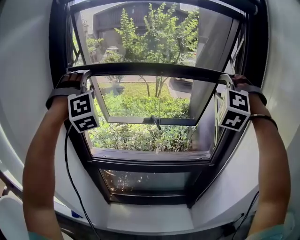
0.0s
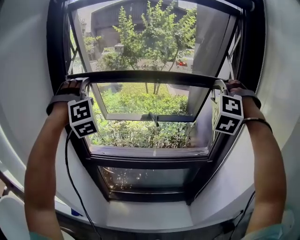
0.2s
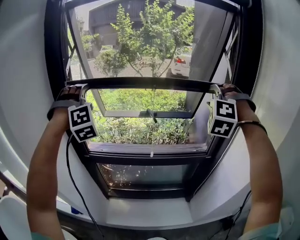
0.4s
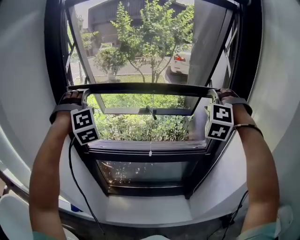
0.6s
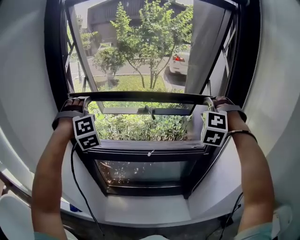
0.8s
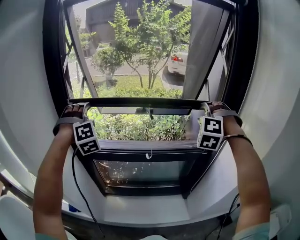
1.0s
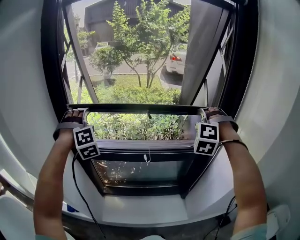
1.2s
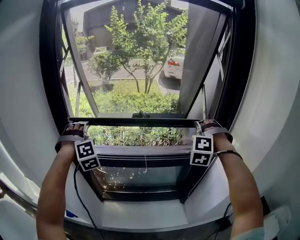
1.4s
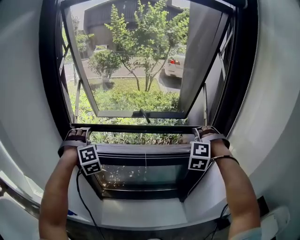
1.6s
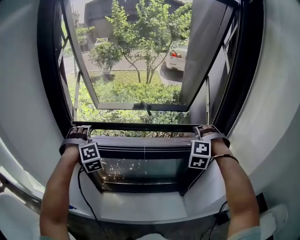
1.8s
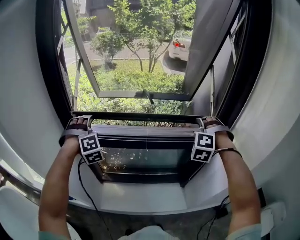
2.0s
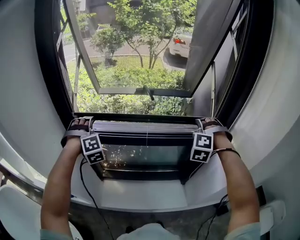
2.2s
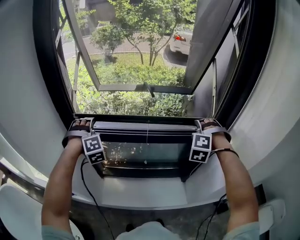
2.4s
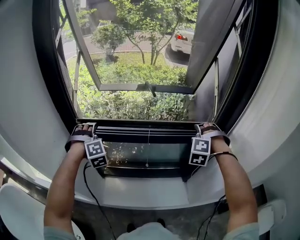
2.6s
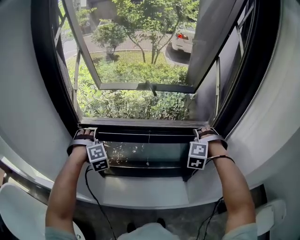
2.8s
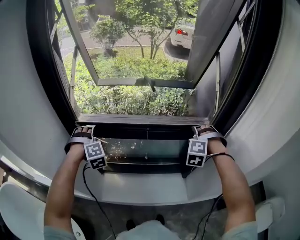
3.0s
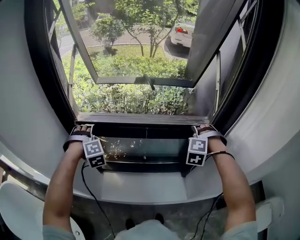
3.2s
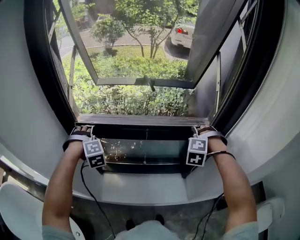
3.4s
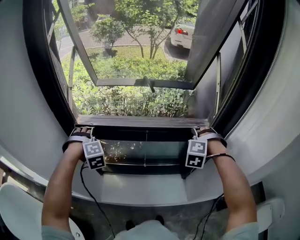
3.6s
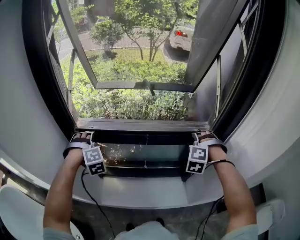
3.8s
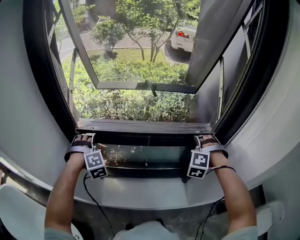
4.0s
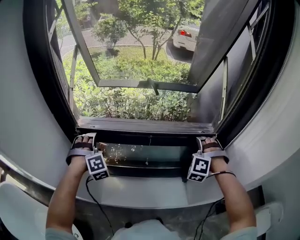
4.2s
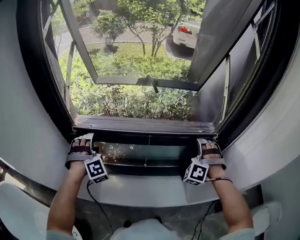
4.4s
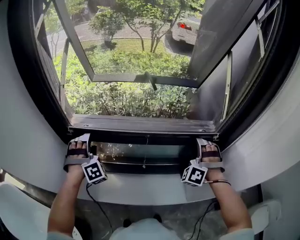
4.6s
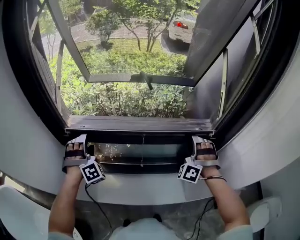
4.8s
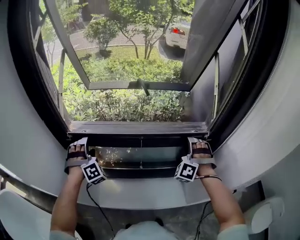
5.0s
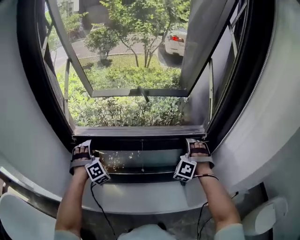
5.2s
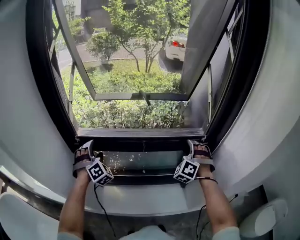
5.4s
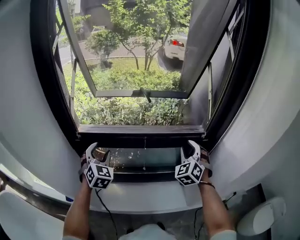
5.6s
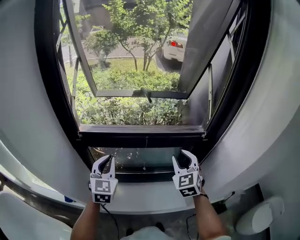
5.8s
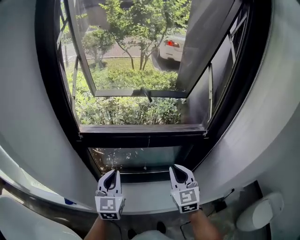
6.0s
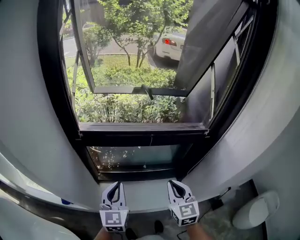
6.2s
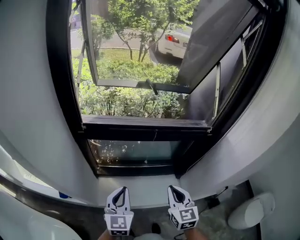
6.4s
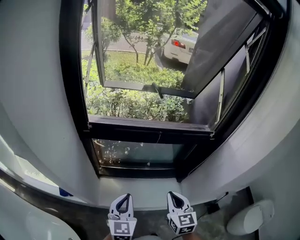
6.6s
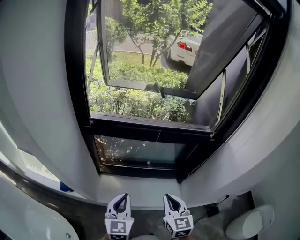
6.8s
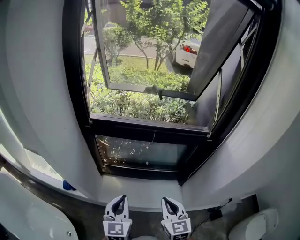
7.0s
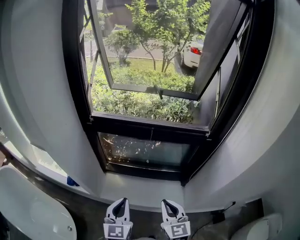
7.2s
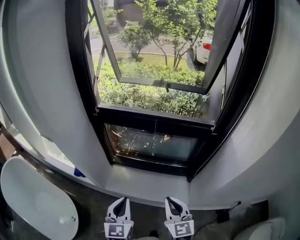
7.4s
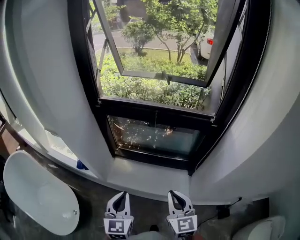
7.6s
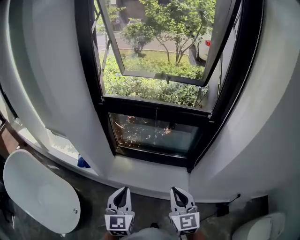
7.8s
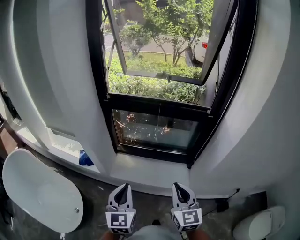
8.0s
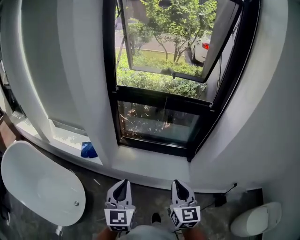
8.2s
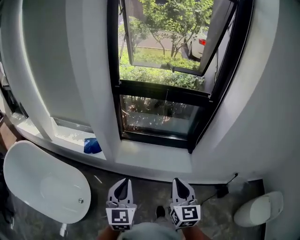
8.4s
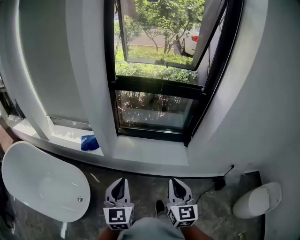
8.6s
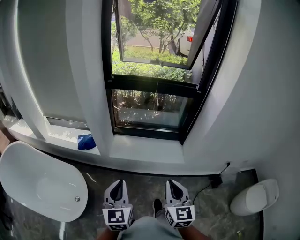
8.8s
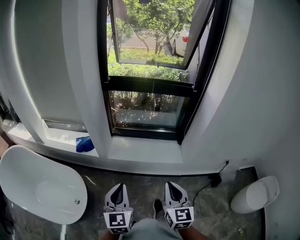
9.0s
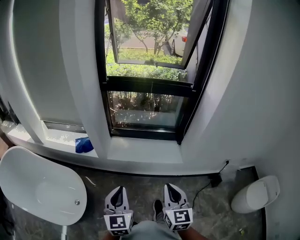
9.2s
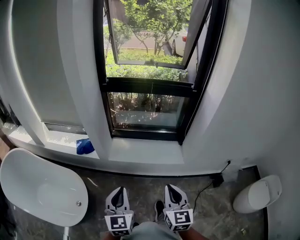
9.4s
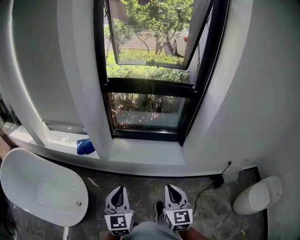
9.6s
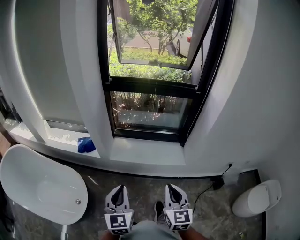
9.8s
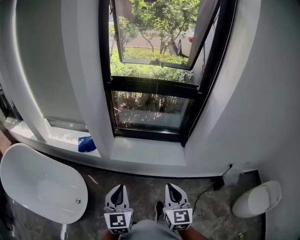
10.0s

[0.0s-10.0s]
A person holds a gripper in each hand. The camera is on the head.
0.0s to 1.4s: Both grippers move downward, roughly 25 cm. The left gripper rotates approximately 20 degrees.
1.4s to 2.8s: Both grippers travel together downward, roughly 20 cm.
2.8s to 4.2s: There are only small adjustments of the grippers.
4.2s to 5.8s: The left gripper is displaced backward, to the right and upward by about 15 cm, twists some 70 degrees counterclockwise, seen from behind, and closes up; the right gripper shifts approximately 15 cm backward, to the left and upward, and twists about 60 degrees clockwise, seen from behind.
5.8s to 7.2s: The left gripper is displaced backward by about 25 cm, while the right gripper moves backward and downward, some 25 cm, changes its angle by approximately 30 degrees, and closes up.
7.2s to 8.6s: The left gripper shifts approximately 30 cm backward and to the left. The right gripper goes approximately 30 cm backward.

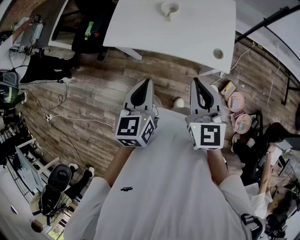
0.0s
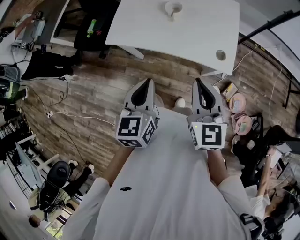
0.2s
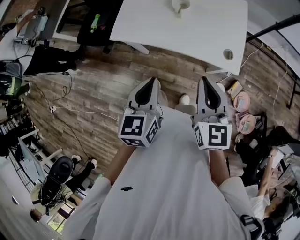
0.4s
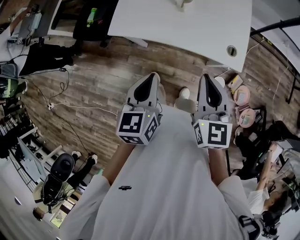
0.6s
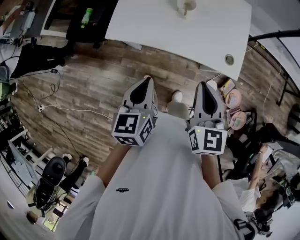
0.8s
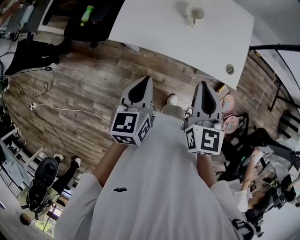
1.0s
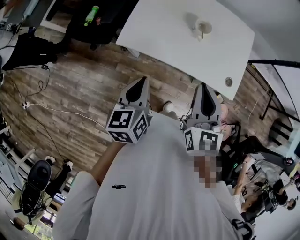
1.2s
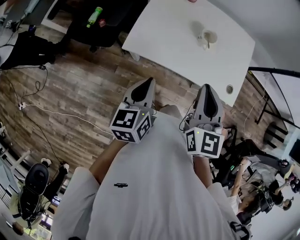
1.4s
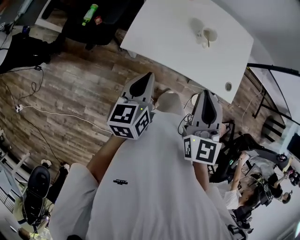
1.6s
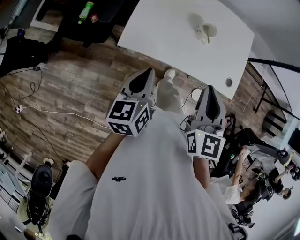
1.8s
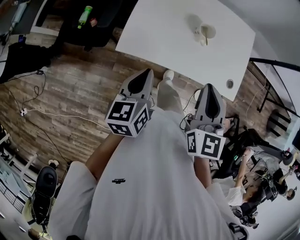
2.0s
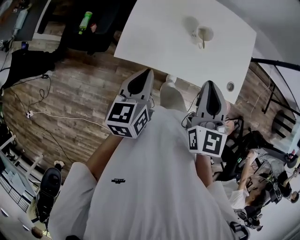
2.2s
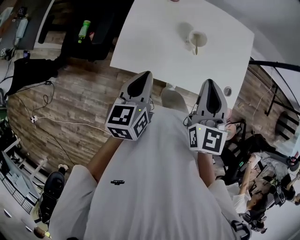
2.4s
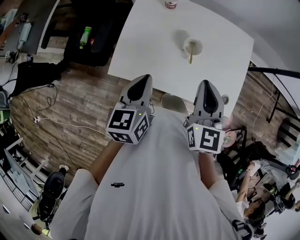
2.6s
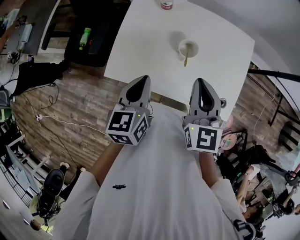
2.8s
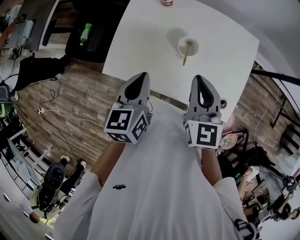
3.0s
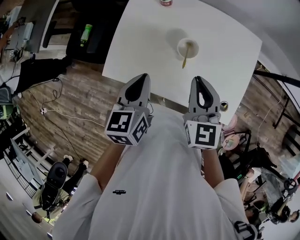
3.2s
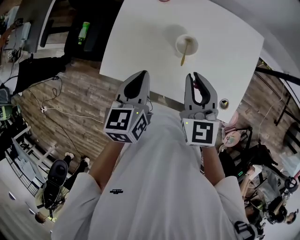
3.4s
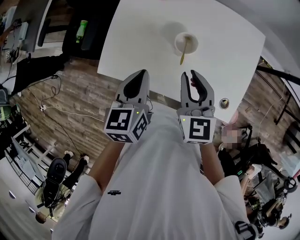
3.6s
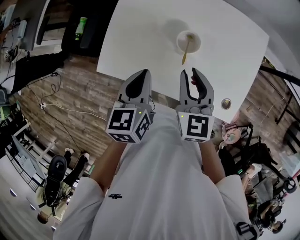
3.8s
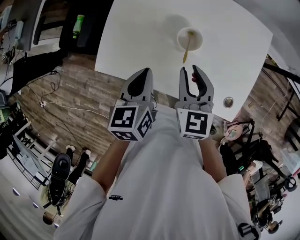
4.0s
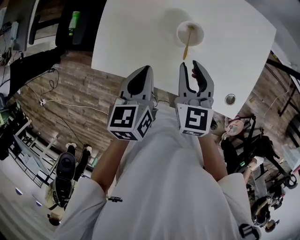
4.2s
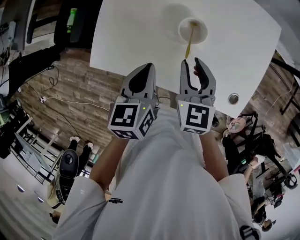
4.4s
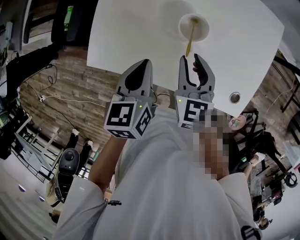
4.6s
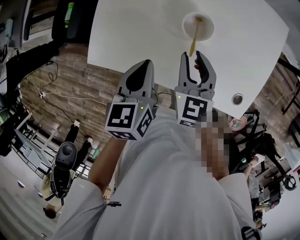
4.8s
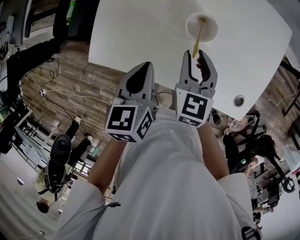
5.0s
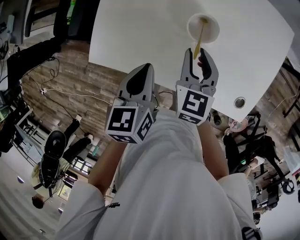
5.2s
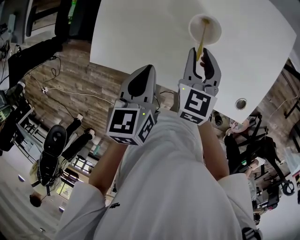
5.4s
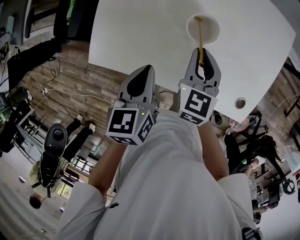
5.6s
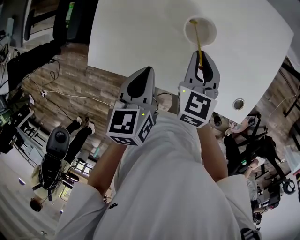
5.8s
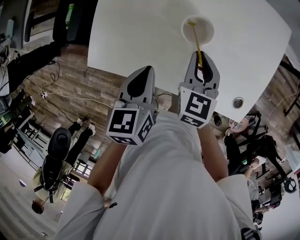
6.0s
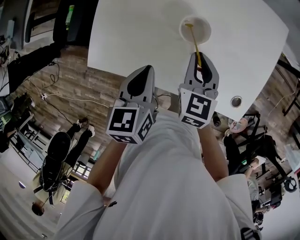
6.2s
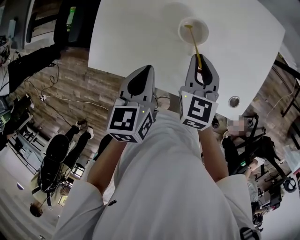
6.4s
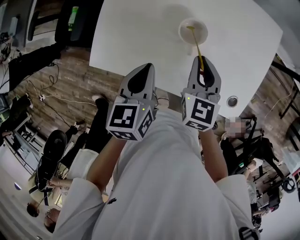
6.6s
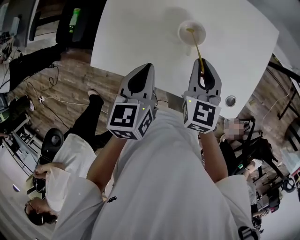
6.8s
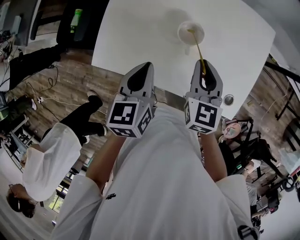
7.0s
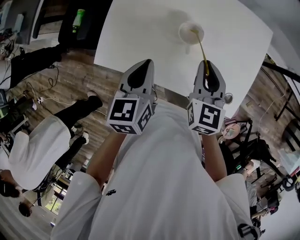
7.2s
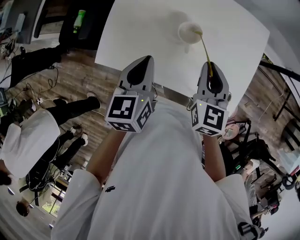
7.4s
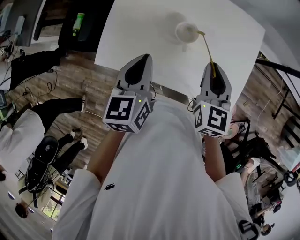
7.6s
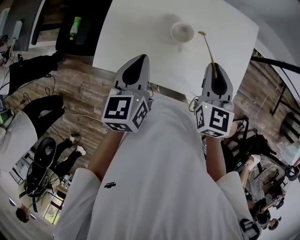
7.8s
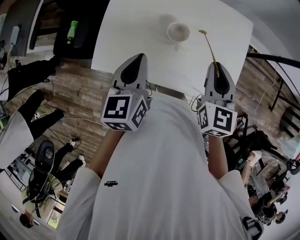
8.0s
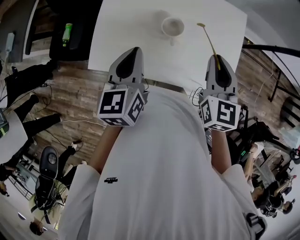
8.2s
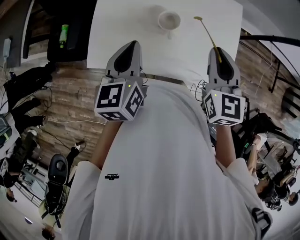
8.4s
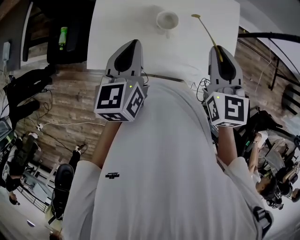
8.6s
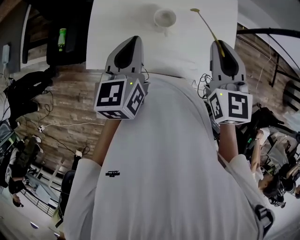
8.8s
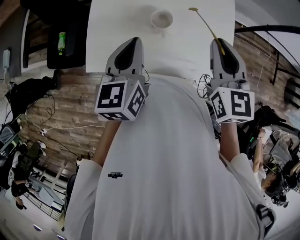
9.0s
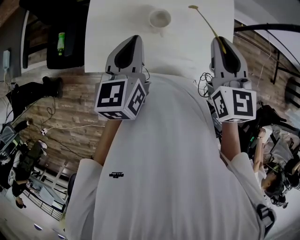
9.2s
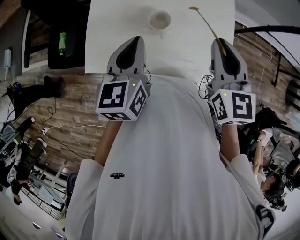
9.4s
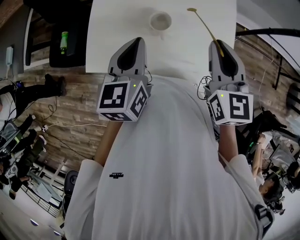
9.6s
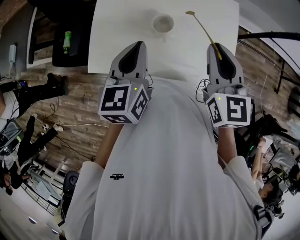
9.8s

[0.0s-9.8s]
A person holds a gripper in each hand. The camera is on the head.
0.0s to 1.4s: The grippers both shift to the left and forward by about 20 cm.
1.4s to 2.8s: The grippers both shift forward and to the right by some 20 cm.
2.8s to 4.2s: Both grippers move downward, some 15 cm. The right gripper opens its fingers.
4.2s to 5.6s: The right gripper is displaced downward by approximately 10 cm, while the left gripper shifts about 5 cm downward.
5.6s to 7.0s: The grippers both shift upward by roughly 10 cm.
7.0s to 8.4s: The right gripper heads upward and to the right, covering about 15 cm. The left gripper moves upward, some 10 cm.
8.4s to 9.8s: The left gripper goes approximately 10 cm to the right. The right gripper moves some 5 cm.

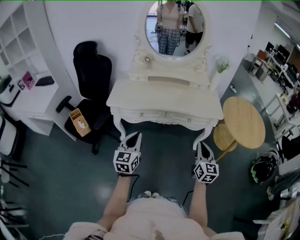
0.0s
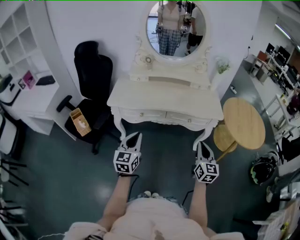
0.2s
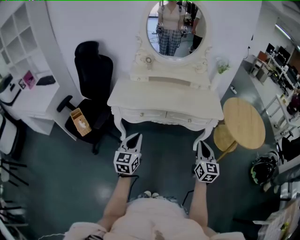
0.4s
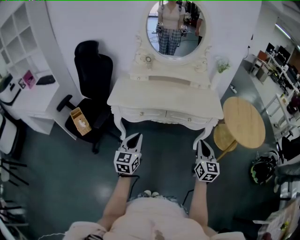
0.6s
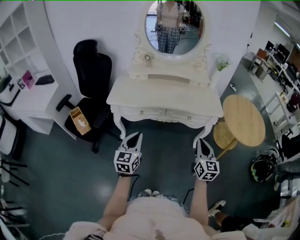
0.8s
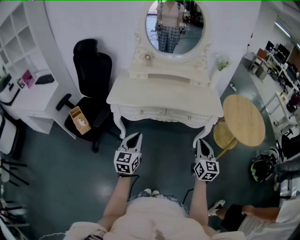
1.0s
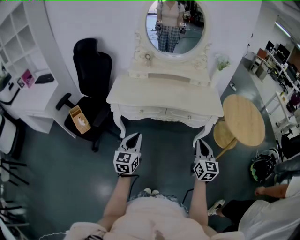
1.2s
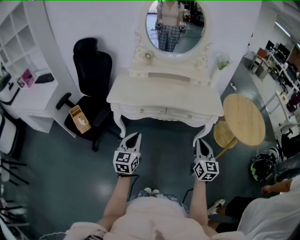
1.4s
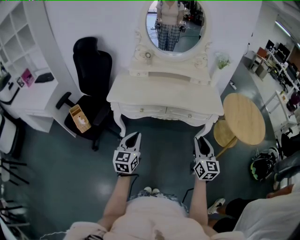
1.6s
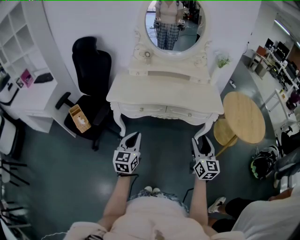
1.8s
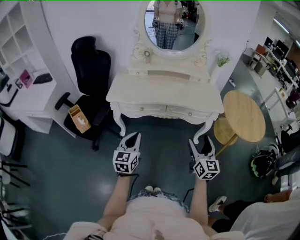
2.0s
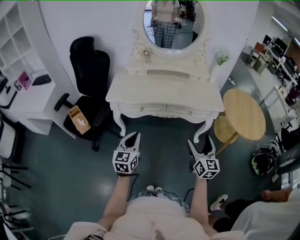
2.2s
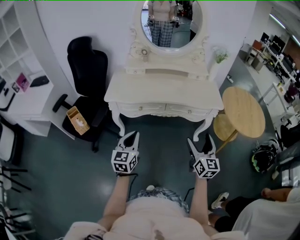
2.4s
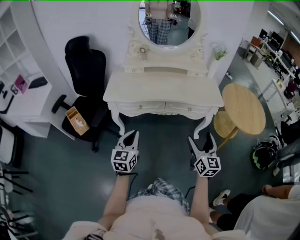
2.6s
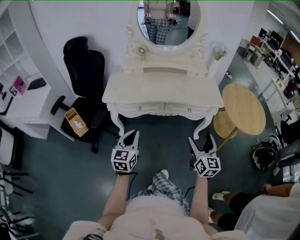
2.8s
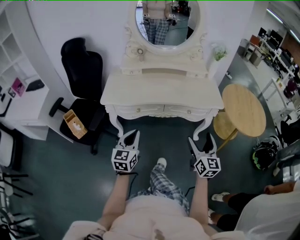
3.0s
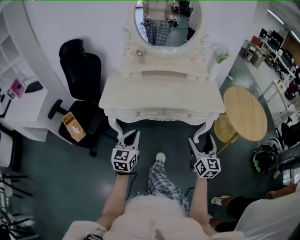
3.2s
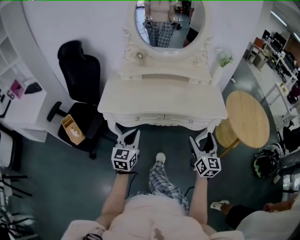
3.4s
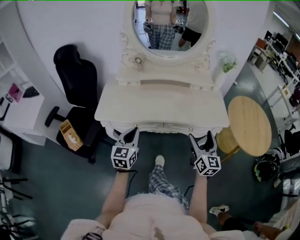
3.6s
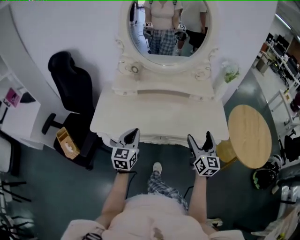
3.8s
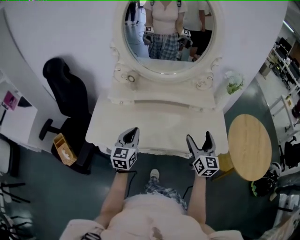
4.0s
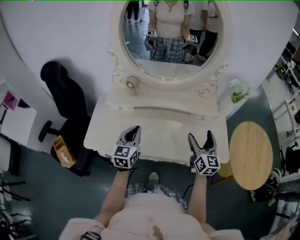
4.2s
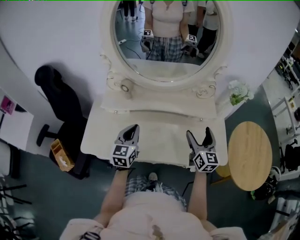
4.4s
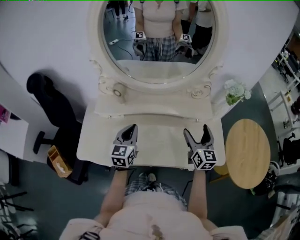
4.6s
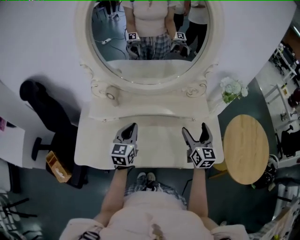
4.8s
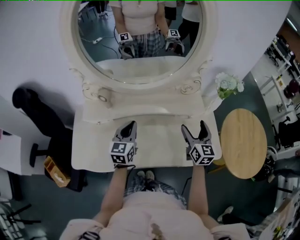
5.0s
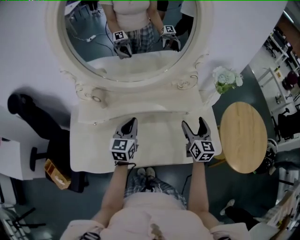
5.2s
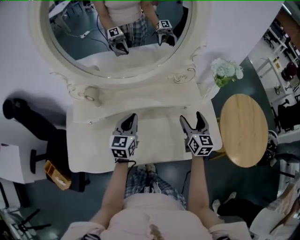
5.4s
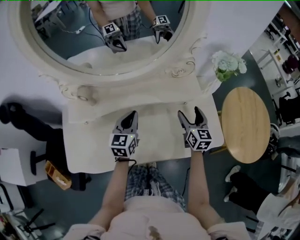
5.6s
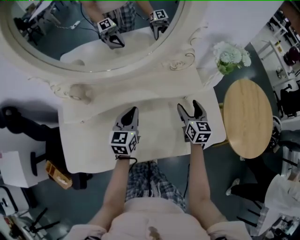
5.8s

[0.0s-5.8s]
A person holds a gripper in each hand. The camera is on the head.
0.0s to 1.4s: The grippers stay close to where they were, moving slightly.
1.4s to 2.8s: The right gripper opens its fingers.
2.8s to 4.4s: The pair of grippers is taken forward, some 50 cm.
4.4s to 5.8s: The right gripper shifts about 20 cm downward, forward and to the right, and turns by some 20 degrees. The left gripper shifts approximately 20 cm forward, to the right and downward.
